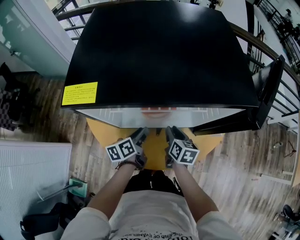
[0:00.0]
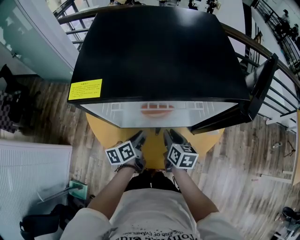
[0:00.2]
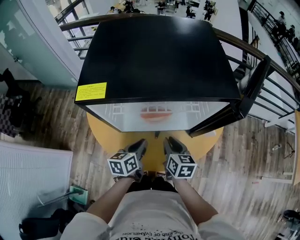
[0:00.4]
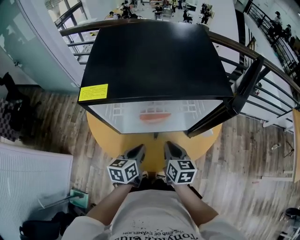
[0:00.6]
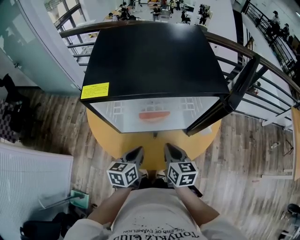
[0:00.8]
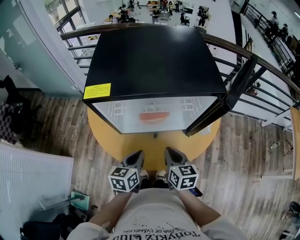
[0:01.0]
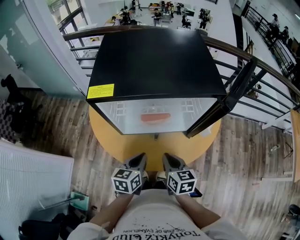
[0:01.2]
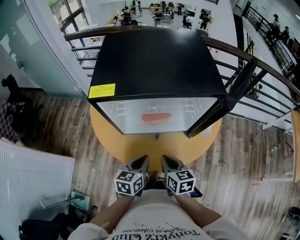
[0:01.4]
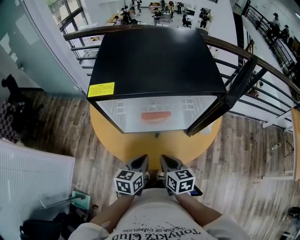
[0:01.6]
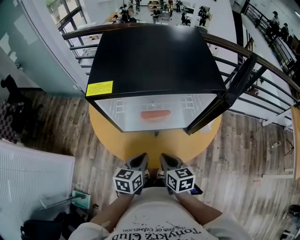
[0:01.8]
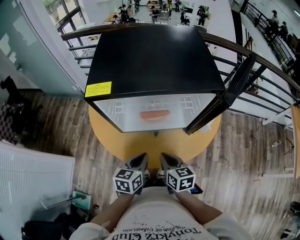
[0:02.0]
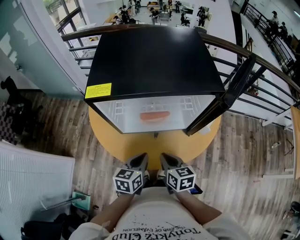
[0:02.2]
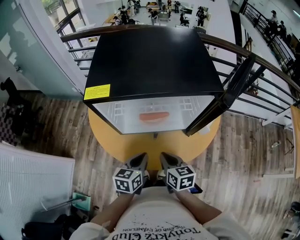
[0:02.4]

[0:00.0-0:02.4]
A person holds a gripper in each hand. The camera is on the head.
0:00.0 to 0:01.2: The right gripper changes place by about 20 cm, and closes up.

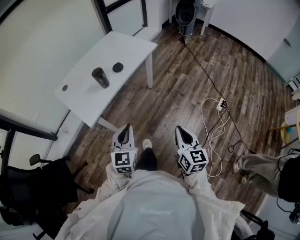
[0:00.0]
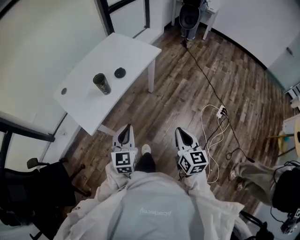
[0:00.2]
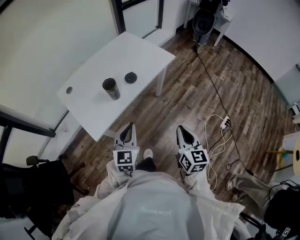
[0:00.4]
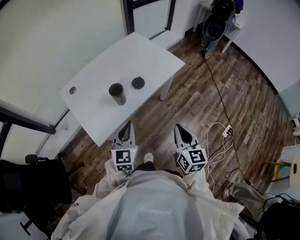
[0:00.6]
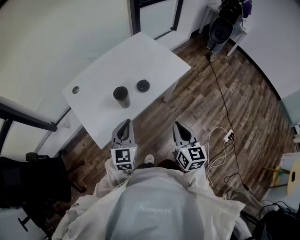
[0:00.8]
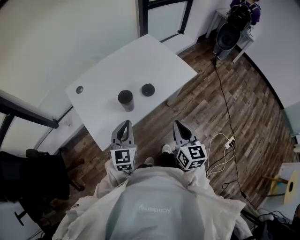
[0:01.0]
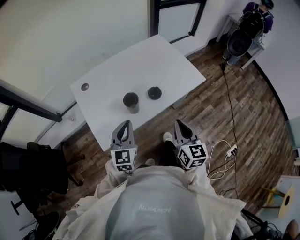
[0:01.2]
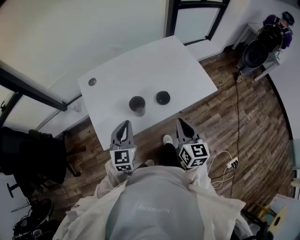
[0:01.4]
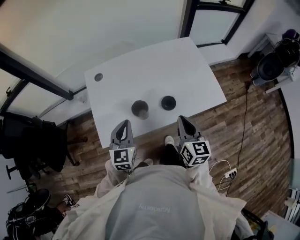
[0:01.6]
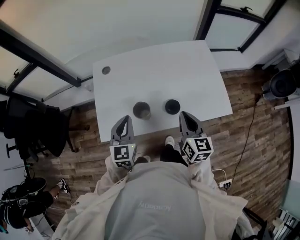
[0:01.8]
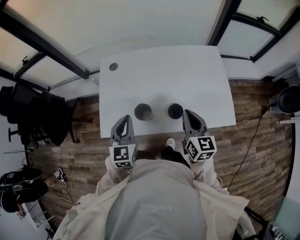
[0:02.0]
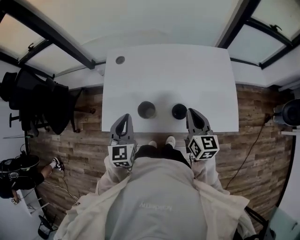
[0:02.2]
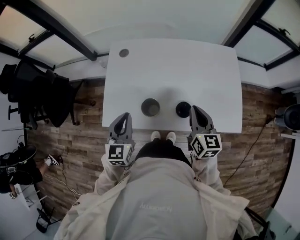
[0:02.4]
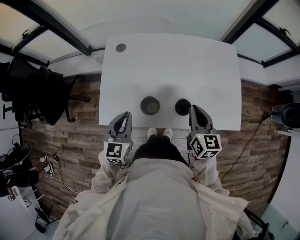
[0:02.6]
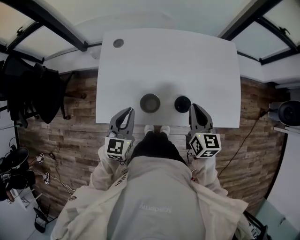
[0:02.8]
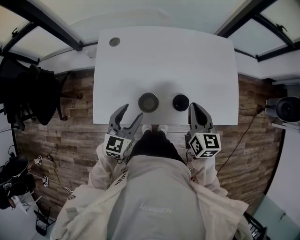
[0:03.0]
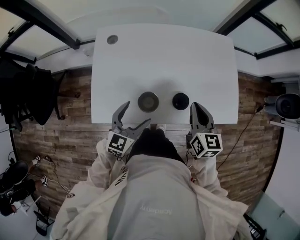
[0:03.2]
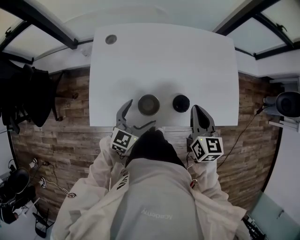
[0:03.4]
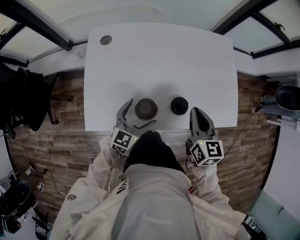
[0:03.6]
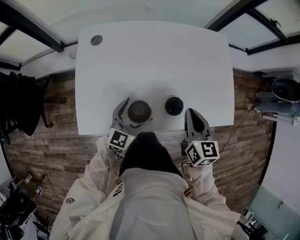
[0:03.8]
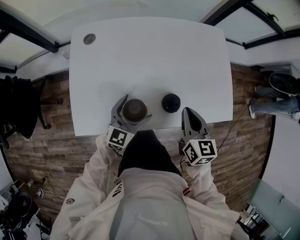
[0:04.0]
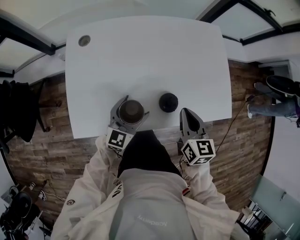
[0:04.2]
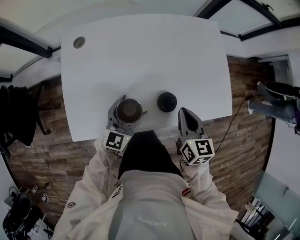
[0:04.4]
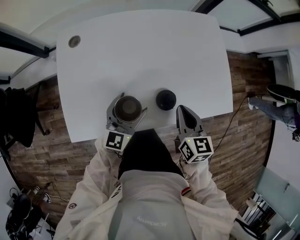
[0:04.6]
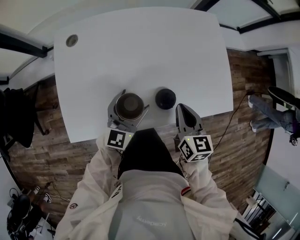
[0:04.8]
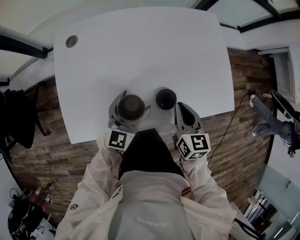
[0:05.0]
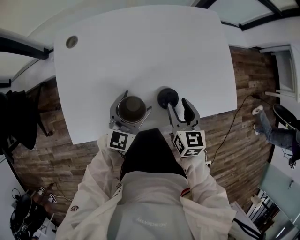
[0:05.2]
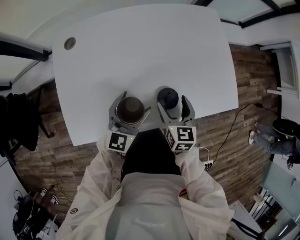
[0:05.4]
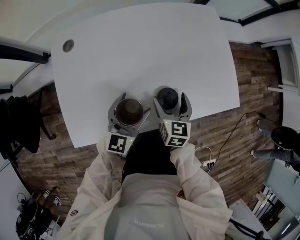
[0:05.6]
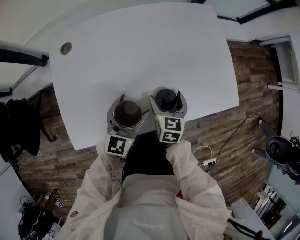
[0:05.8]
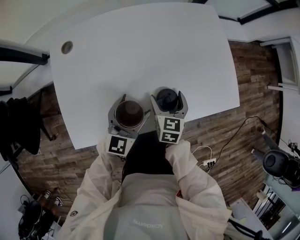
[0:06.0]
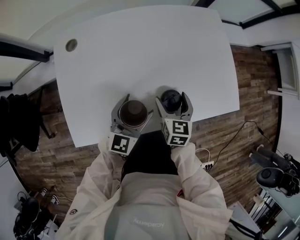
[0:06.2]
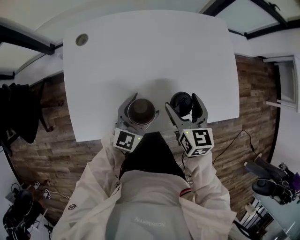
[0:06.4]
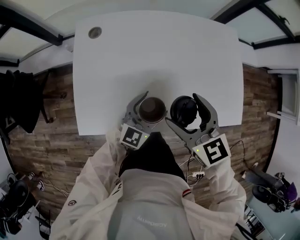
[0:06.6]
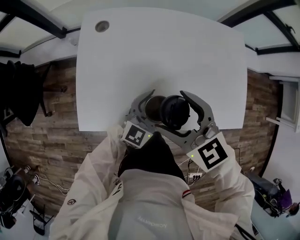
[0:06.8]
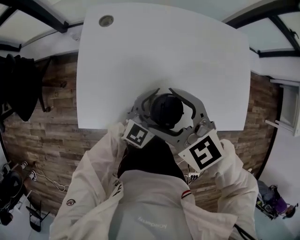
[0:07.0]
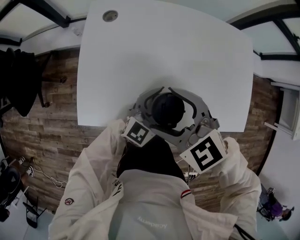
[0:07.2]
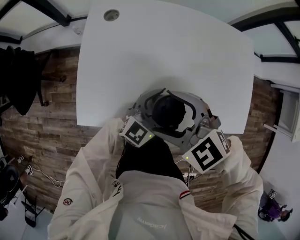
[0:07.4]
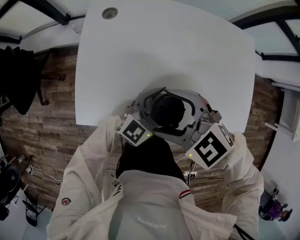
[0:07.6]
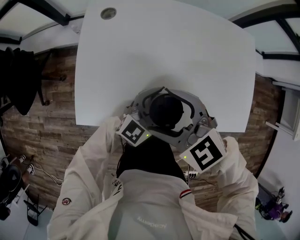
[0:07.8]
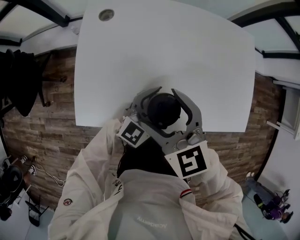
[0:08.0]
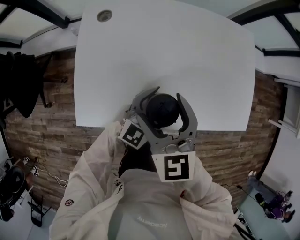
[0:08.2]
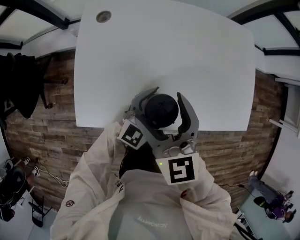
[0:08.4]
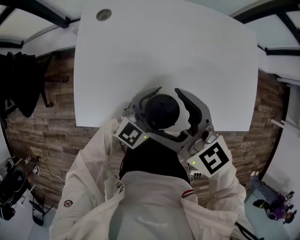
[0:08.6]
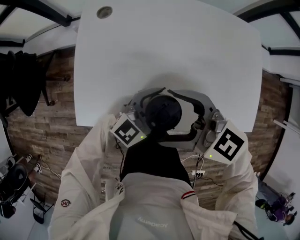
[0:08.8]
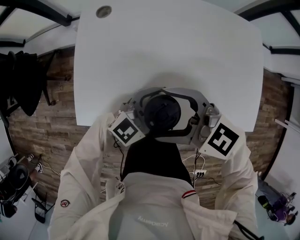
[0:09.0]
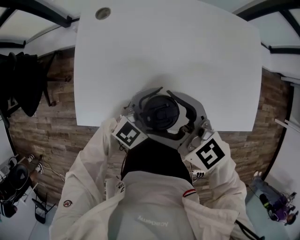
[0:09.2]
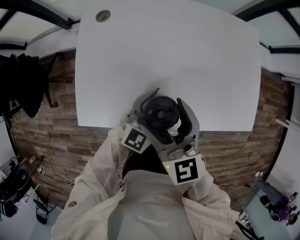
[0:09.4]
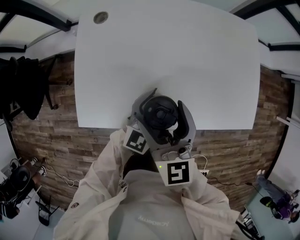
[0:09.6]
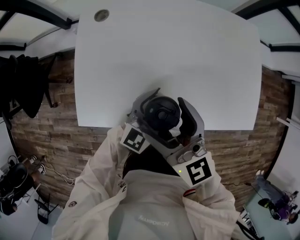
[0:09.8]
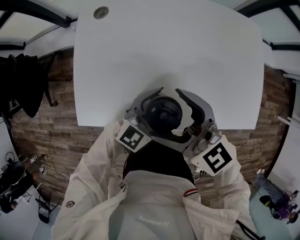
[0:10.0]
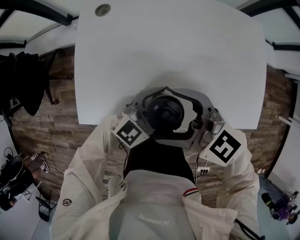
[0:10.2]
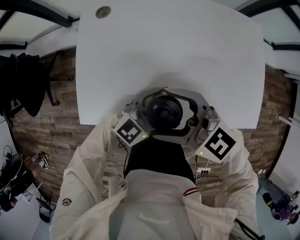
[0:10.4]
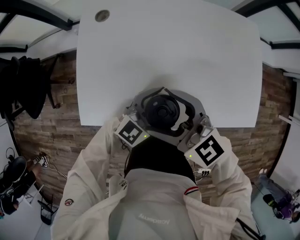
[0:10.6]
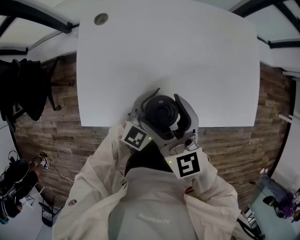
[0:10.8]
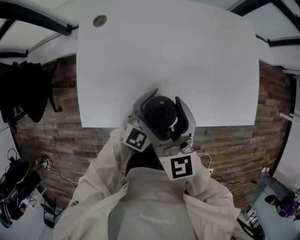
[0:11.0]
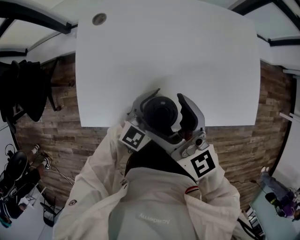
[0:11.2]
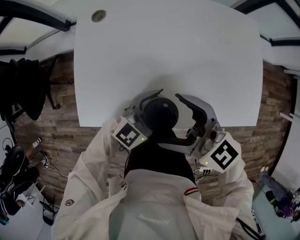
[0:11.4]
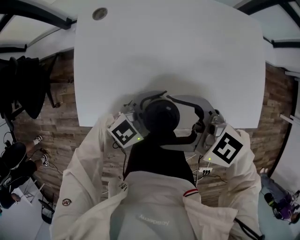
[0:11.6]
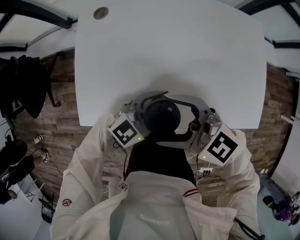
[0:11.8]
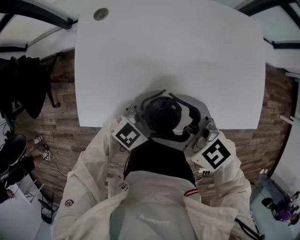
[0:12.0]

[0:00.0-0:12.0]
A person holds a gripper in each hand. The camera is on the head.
0:00.0 to 0:01.6: The two grippers travel together, roughly 50 cm. The right gripper changes its angle by about 40 degrees. Meanwhile the left gripper swivels about 40 degrees.
0:01.6 to 0:03.0: The left gripper heads downward and forward, covering roughly 10 cm, and opens up, while the right gripper shifts approximately 15 cm forward.
0:03.0 to 0:04.4: The left gripper goes approximately 15 cm downward, forward and to the right; the right gripper goes some 10 cm downward.
0:04.4 to 0:06.0: The right gripper moves downward, some 15 cm, and opens its fingers.
0:06.0 to 0:07.6: The right gripper moves approximately 25 cm, and rotates some 90 degrees.
0:07.6 to 0:09.0: The right gripper swivels about 30 degrees.

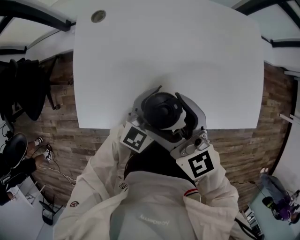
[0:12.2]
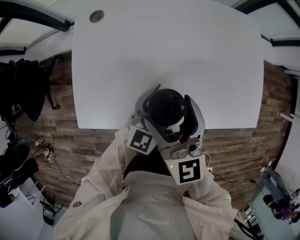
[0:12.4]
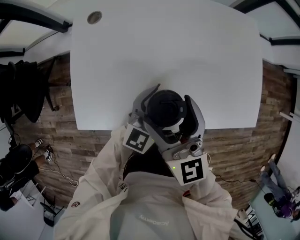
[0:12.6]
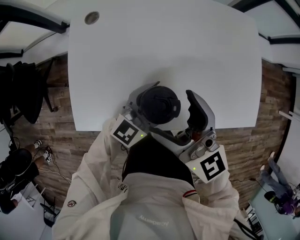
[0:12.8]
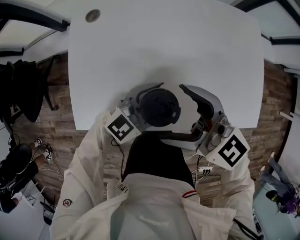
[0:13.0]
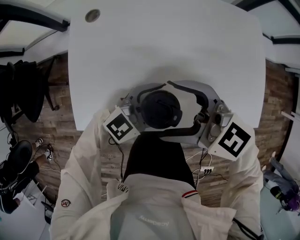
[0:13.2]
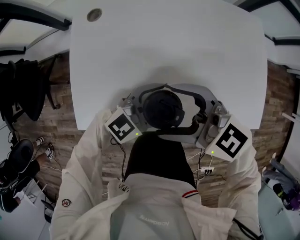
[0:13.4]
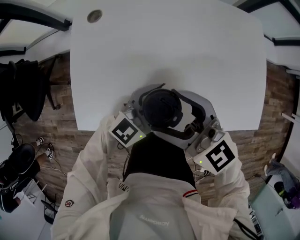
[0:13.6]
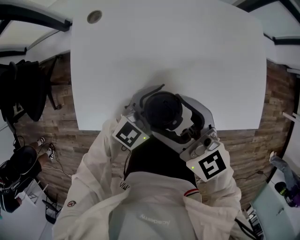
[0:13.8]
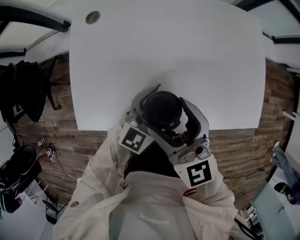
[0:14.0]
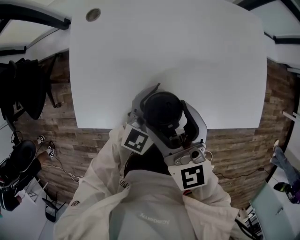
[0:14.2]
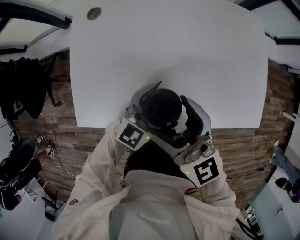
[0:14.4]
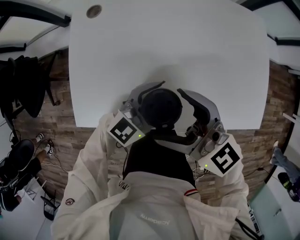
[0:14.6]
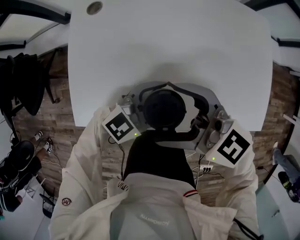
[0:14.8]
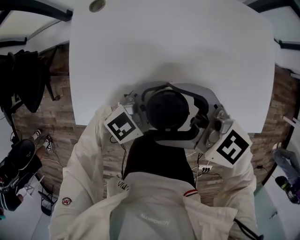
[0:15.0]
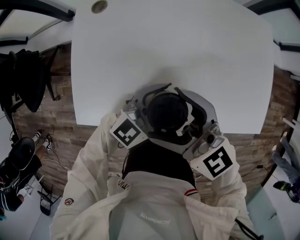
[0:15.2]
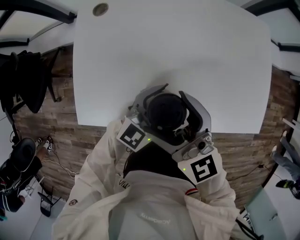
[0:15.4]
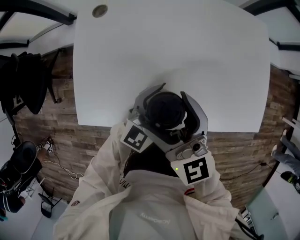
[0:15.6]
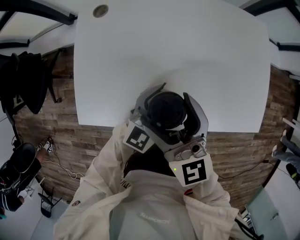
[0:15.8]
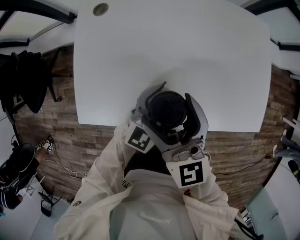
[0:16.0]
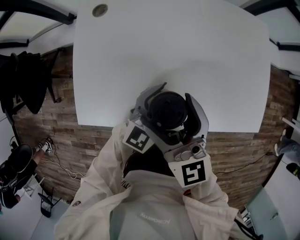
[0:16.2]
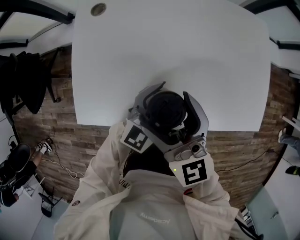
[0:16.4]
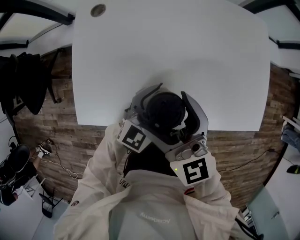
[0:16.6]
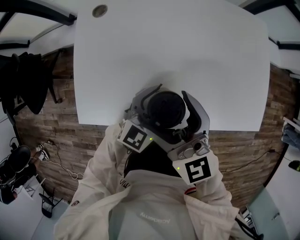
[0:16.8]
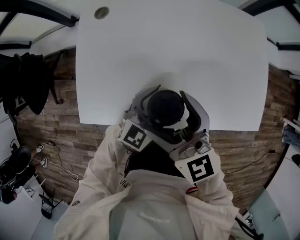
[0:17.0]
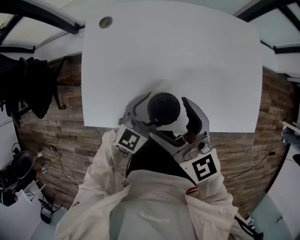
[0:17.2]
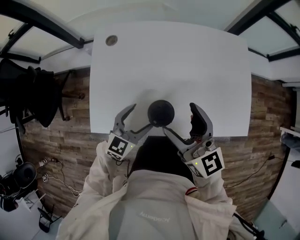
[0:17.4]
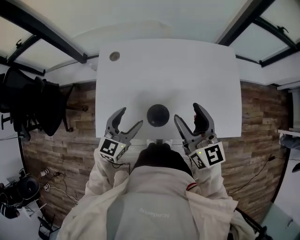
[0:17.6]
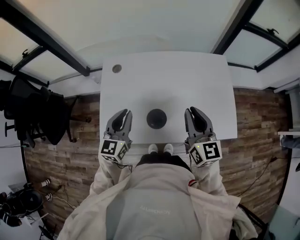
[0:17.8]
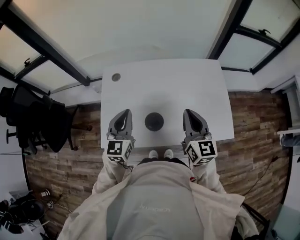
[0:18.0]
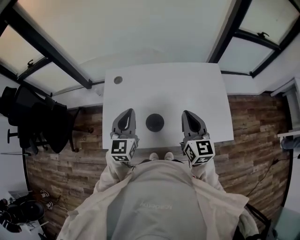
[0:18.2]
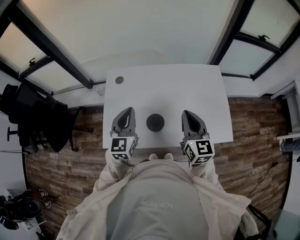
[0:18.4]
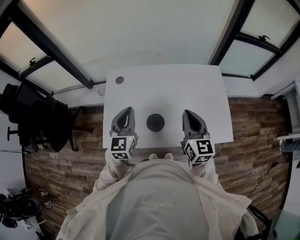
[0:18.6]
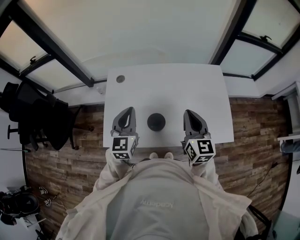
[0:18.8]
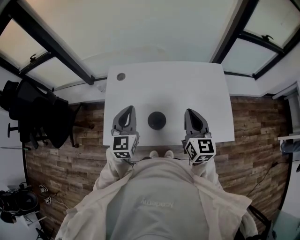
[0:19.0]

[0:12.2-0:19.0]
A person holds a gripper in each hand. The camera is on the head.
0:15.0 to 0:16.2: The left gripper swivels about 20 degrees. Meanwhile the right gripper swivels roughly 40 degrees.
0:16.2 to 0:17.6: The right gripper is displaced upward and to the right by about 15 cm. Meanwhile the left gripper moves upward and to the left, some 20 cm.
0:17.6 to 0:19.0: The right gripper ends up about 5 cm from where it was, and closes up. Meanwhile the left gripper shifts about 15 cm upward, swivels approximately 20 degrees, and closes its fingers.

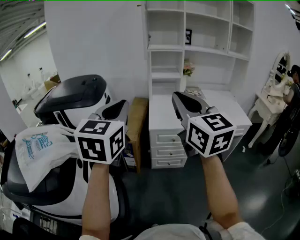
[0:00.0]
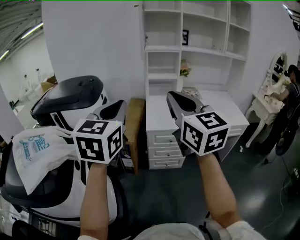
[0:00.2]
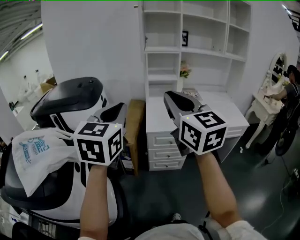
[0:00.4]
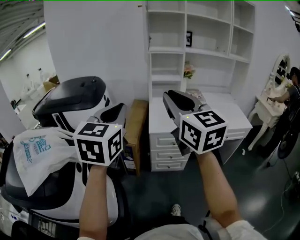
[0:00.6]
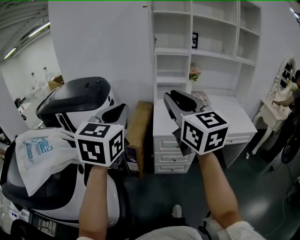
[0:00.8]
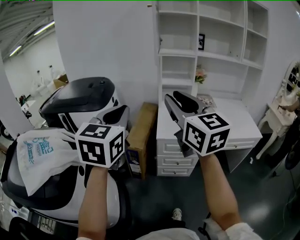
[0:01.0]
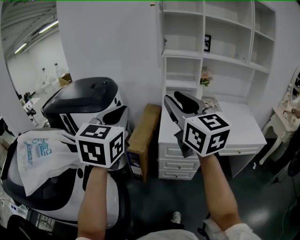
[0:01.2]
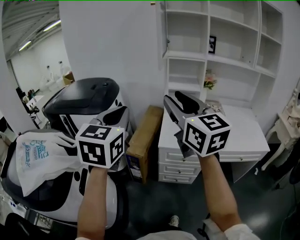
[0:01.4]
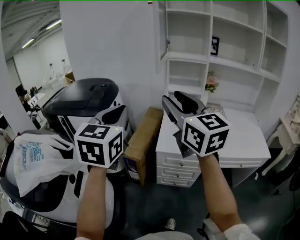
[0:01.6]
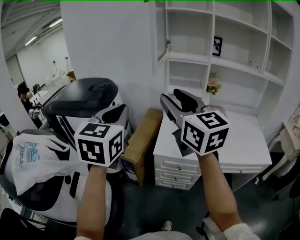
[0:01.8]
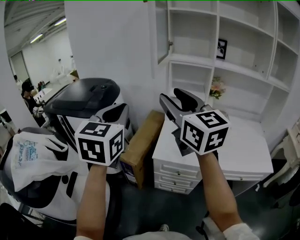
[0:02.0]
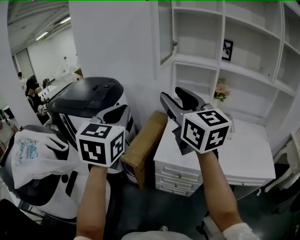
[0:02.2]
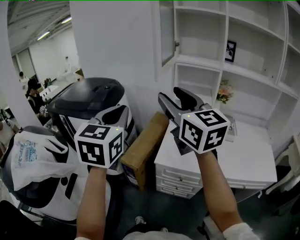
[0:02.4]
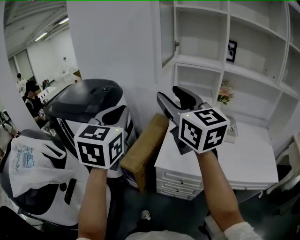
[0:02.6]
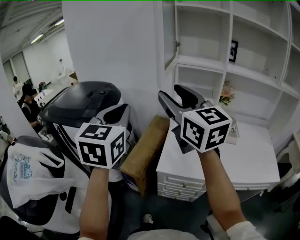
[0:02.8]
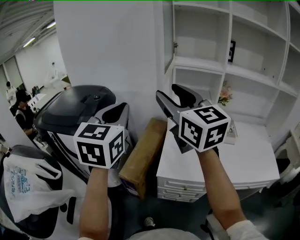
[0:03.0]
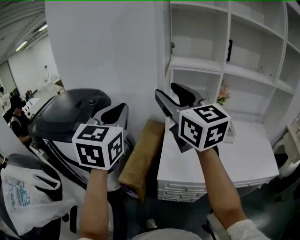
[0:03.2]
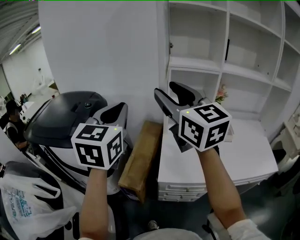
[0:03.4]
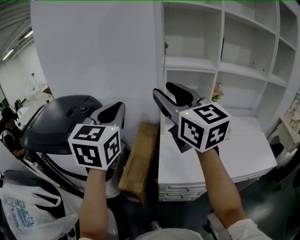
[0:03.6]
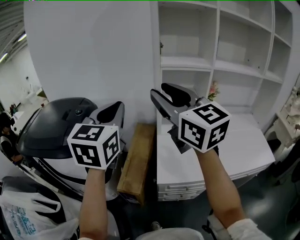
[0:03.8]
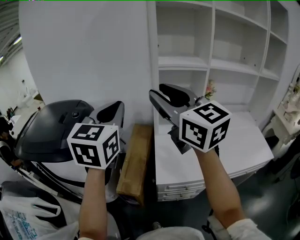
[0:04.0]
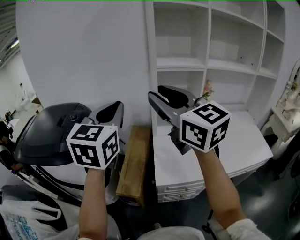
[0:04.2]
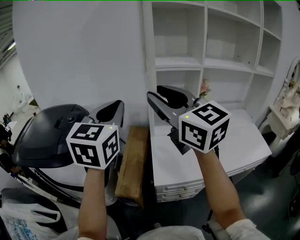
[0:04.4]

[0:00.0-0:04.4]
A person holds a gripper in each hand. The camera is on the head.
0:00.0 to 0:01.4: Both grippers travel together forward, roughly 15 cm. The right gripper opens its fingers.
0:01.4 to 0:03.0: Both grippers move forward, some 20 cm.
0:03.0 to 0:04.4: The left gripper heads forward, covering roughly 10 cm.
